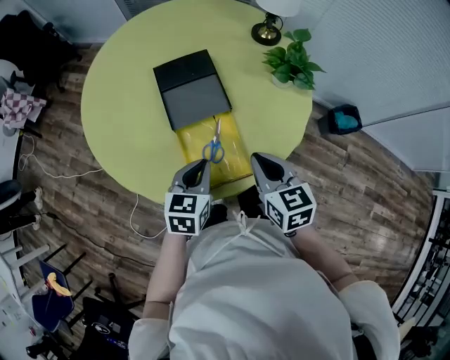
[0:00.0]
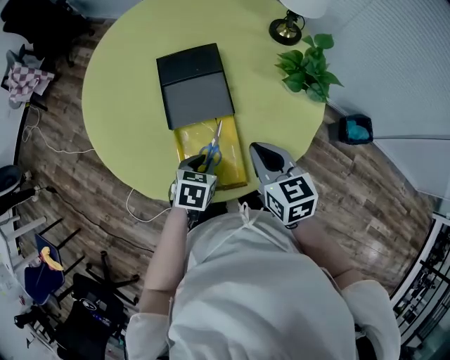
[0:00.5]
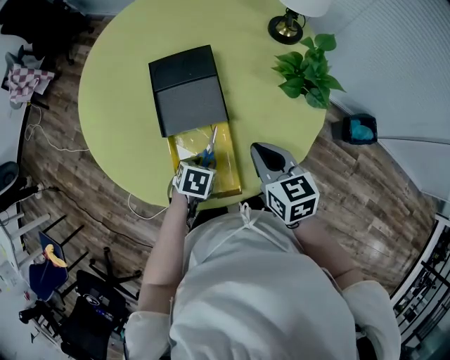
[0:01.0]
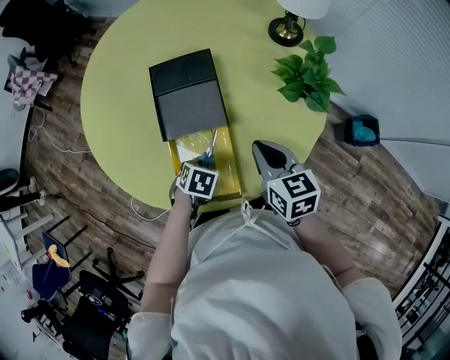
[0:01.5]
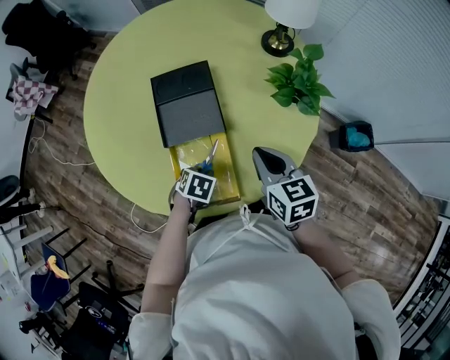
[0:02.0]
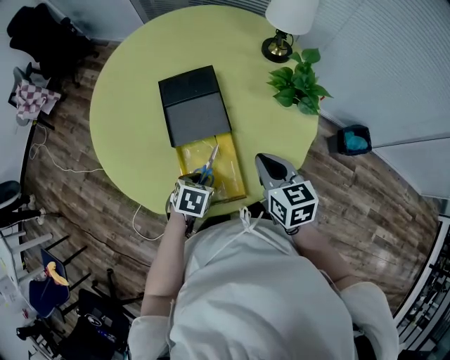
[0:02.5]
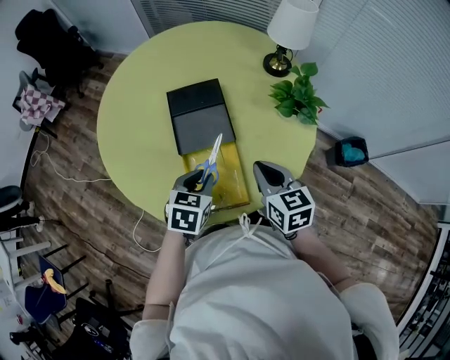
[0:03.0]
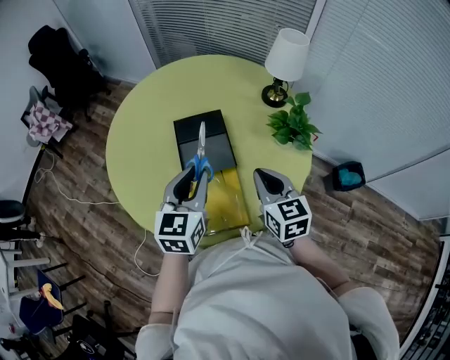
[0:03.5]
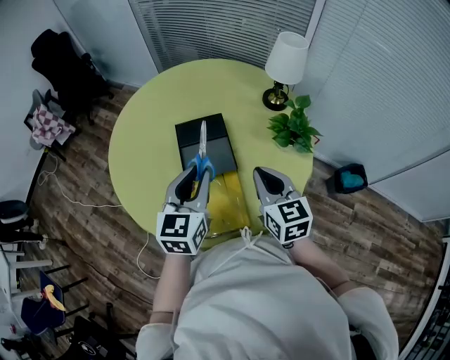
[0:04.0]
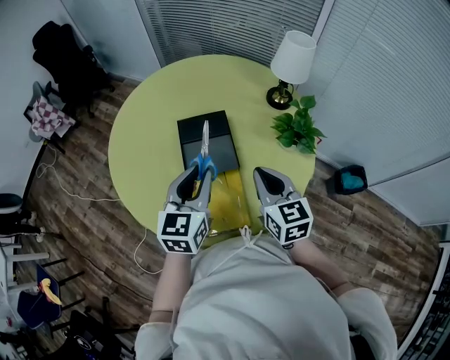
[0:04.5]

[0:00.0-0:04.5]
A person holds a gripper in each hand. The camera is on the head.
0:00.0 to 0:02.0: The right gripper changes place by approximately 10 cm. The left gripper moves downward, approximately 15 cm, and points its fingers some 40 degrees further downward.
0:02.0 to 0:04.5: The left gripper travels upward by some 30 cm, and points its fingers roughly 60 degrees further upward; the right gripper heads upward, covering about 10 cm.

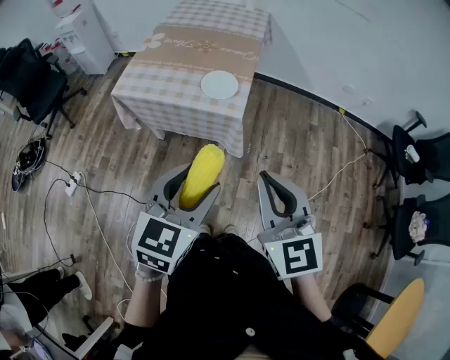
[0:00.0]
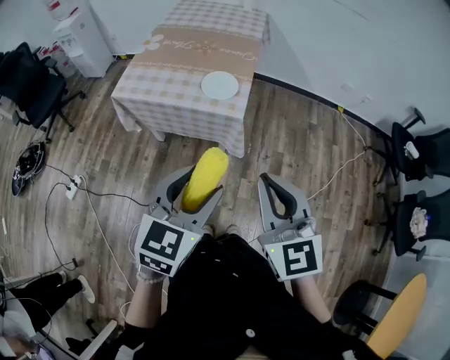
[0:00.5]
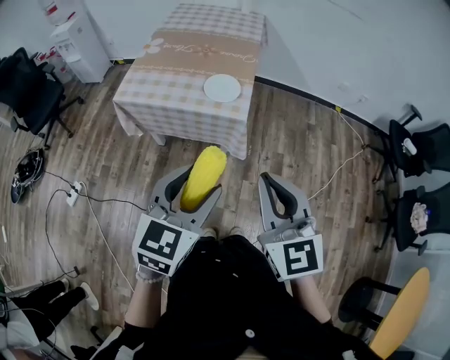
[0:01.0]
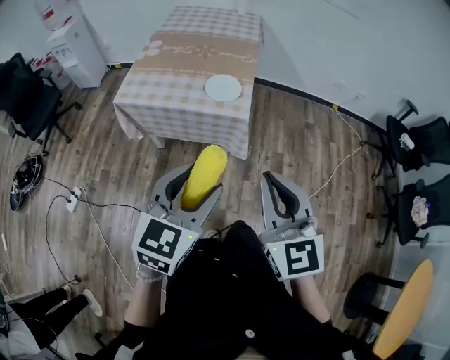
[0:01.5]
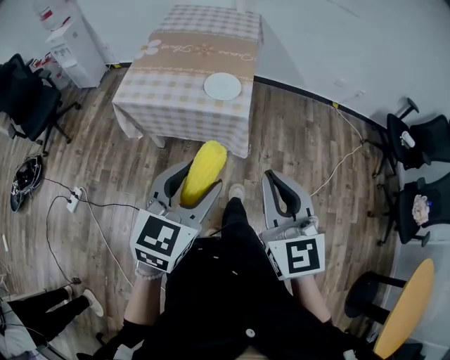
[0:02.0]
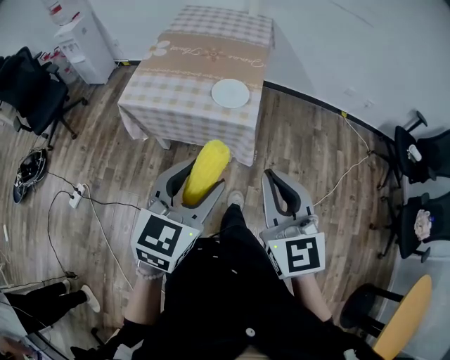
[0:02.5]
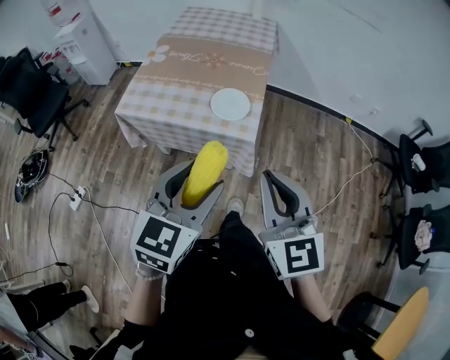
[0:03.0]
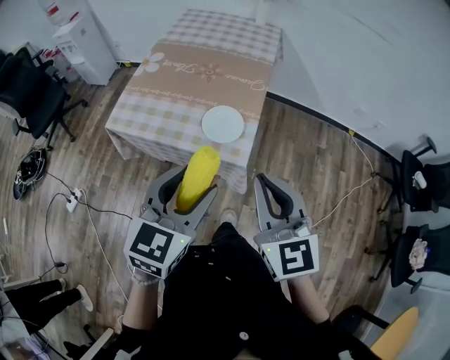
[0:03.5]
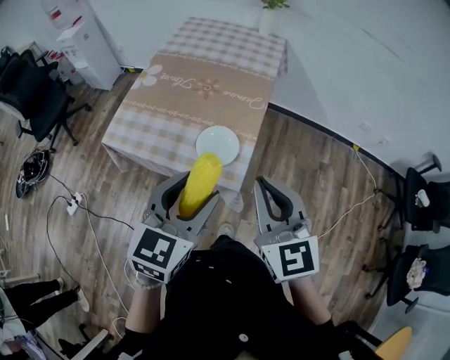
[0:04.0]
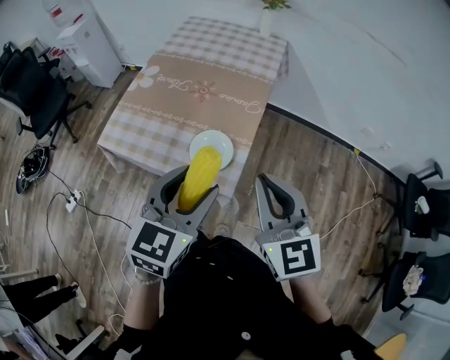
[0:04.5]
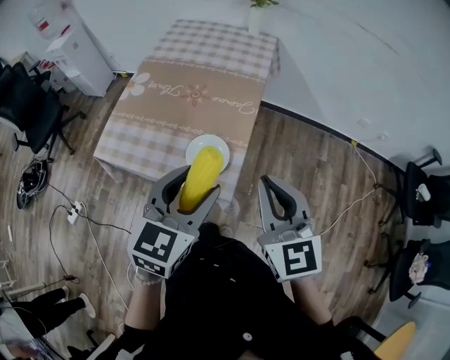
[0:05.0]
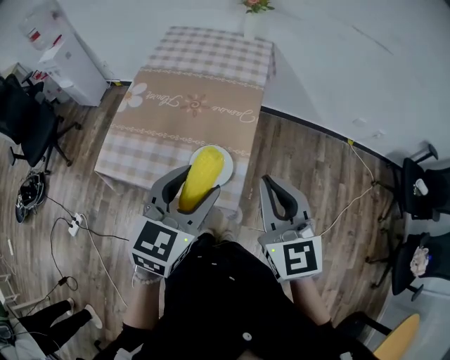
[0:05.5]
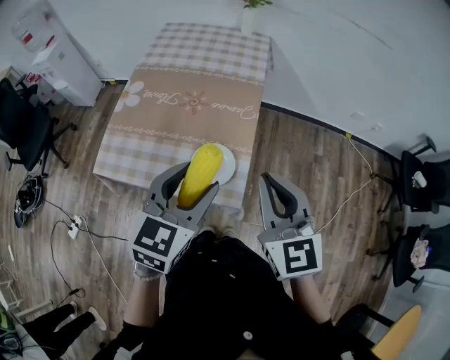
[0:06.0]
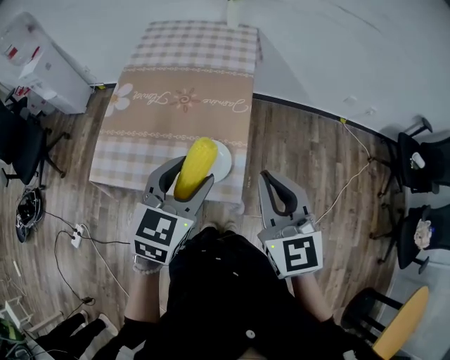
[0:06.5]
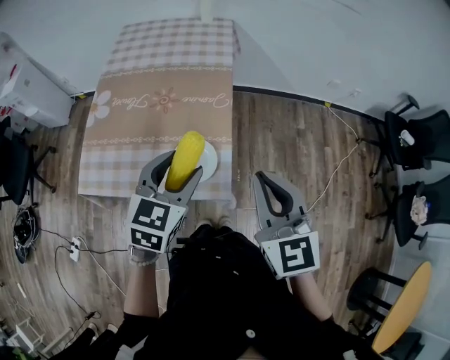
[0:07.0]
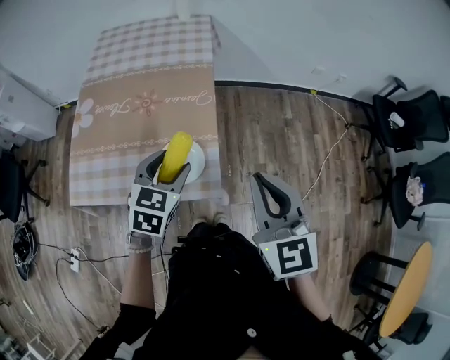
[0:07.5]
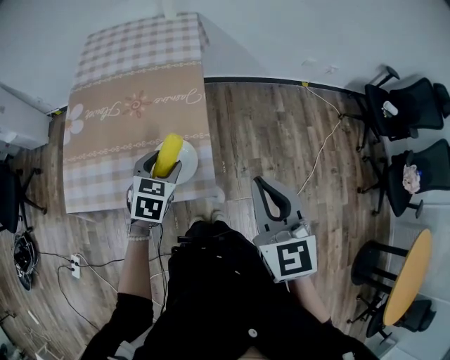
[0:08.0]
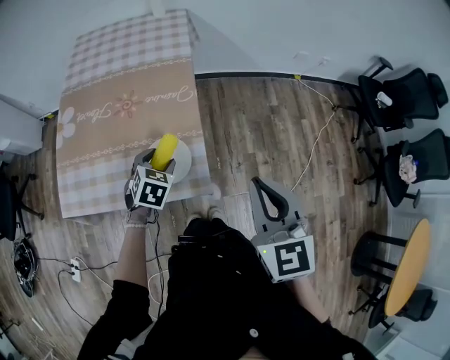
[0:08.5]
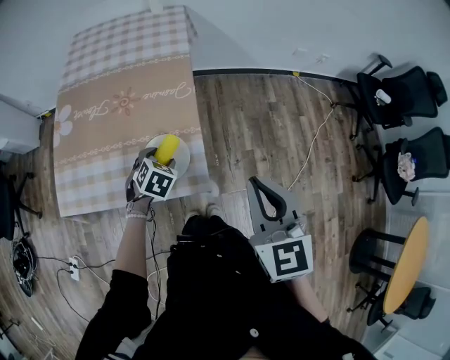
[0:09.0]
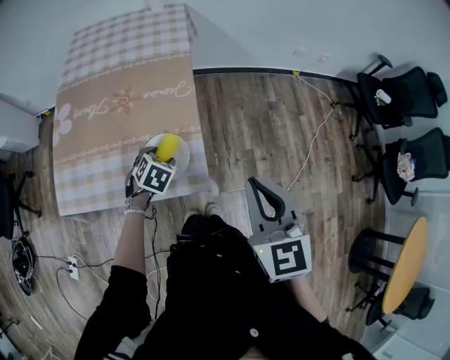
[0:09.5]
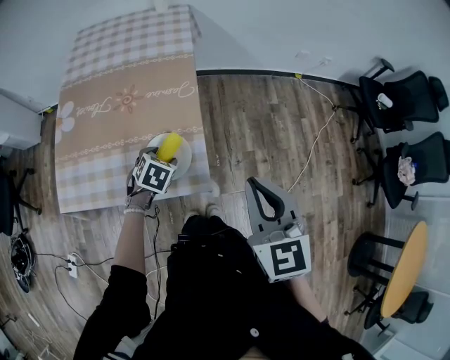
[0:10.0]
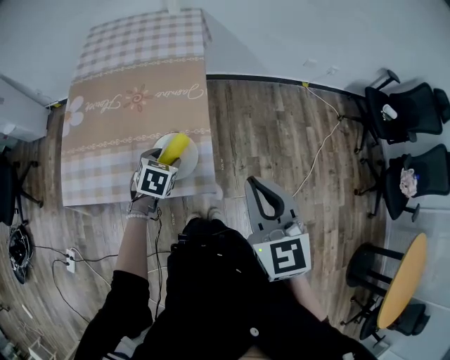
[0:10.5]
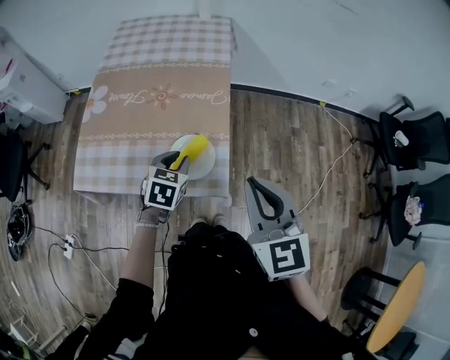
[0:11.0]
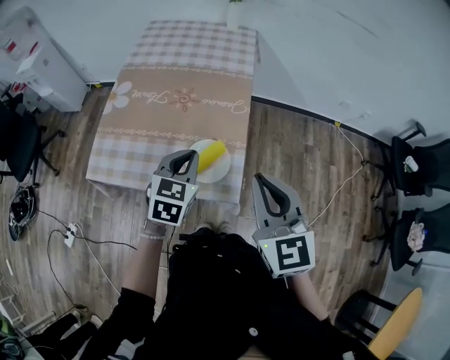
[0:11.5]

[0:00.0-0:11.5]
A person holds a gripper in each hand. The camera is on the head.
0:00.0 to 0:02.0: The left gripper heads to the left, covering some 5 cm.
0:02.0 to 0:04.0: The two grippers go some 30 cm forward.
0:04.0 to 0:06.0: The grippers both shift forward by about 10 cm.
0:06.0 to 0:07.5: The left gripper goes approximately 15 cm downward and forward. Meanwhile the right gripper goes approximately 5 cm to the right.
0:07.5 to 0:09.5: The left gripper heads downward, covering some 20 cm, and turns by about 30 degrees.
0:09.5 to 0:11.5: The left gripper moves upward, approximately 20 cm, points its fingers approximately 30 degrees further upward, and closes its fingers. Meanwhile the right gripper is displaced to the left by some 10 cm.

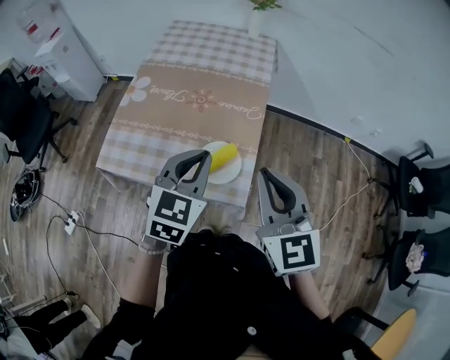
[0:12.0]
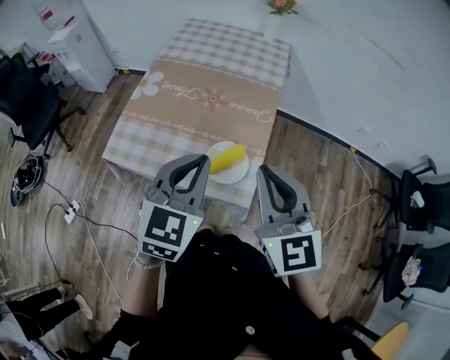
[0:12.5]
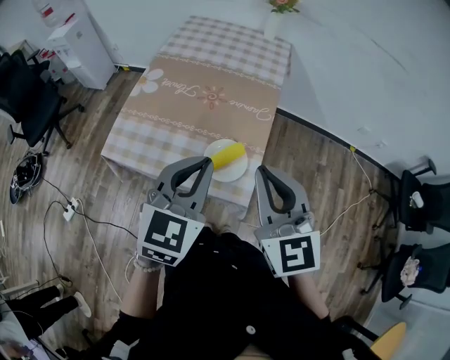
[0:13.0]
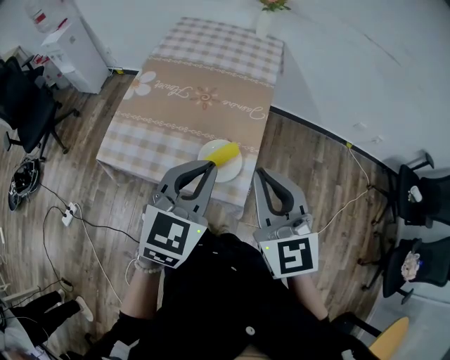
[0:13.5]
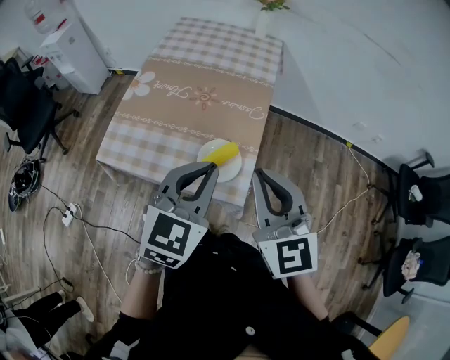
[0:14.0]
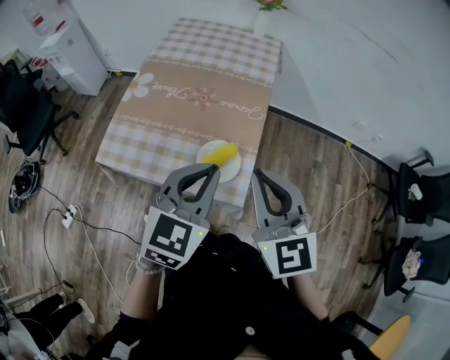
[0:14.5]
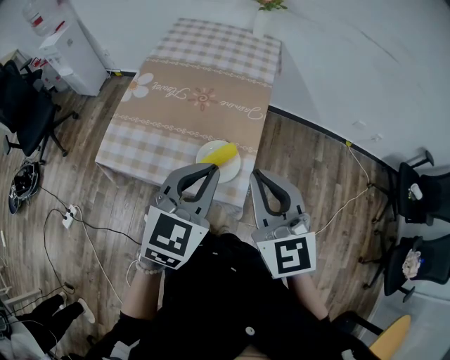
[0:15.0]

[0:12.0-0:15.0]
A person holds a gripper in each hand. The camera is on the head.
0:12.0 to 0:13.5: The left gripper moves approximately 5 cm.
0:13.5 to 0:15.0: Both grippers stay about where they are.

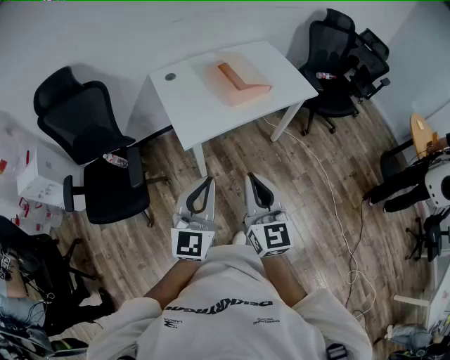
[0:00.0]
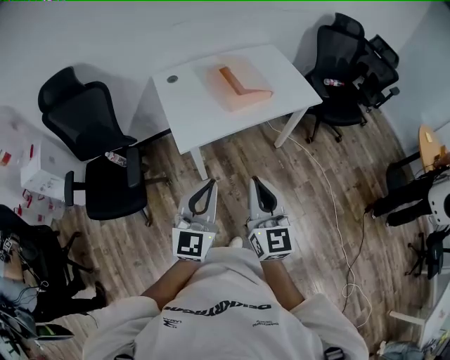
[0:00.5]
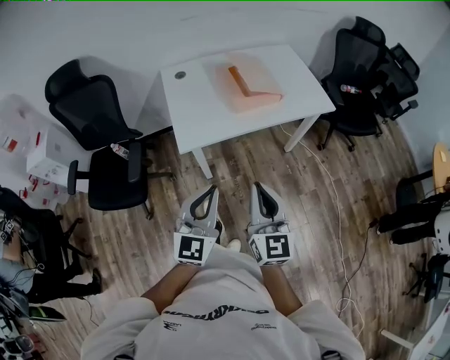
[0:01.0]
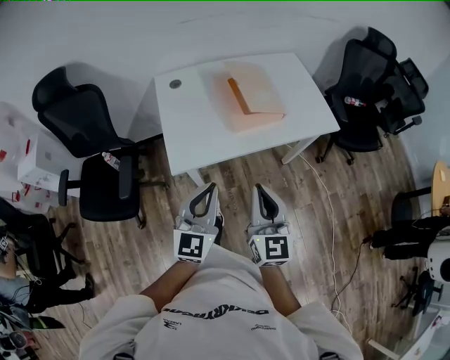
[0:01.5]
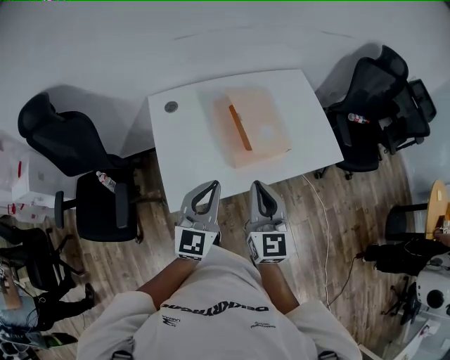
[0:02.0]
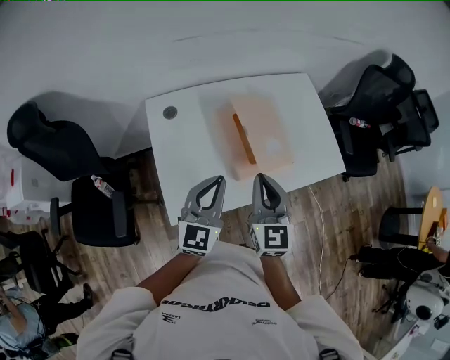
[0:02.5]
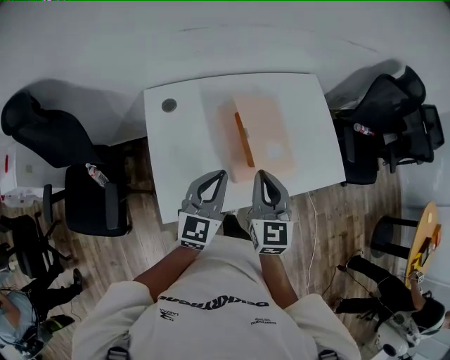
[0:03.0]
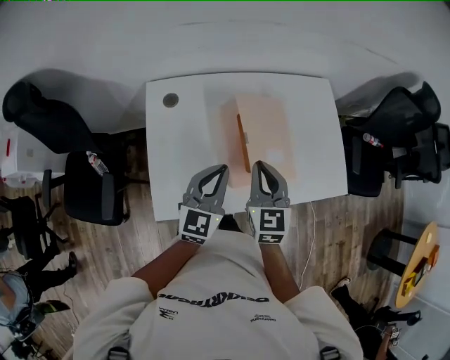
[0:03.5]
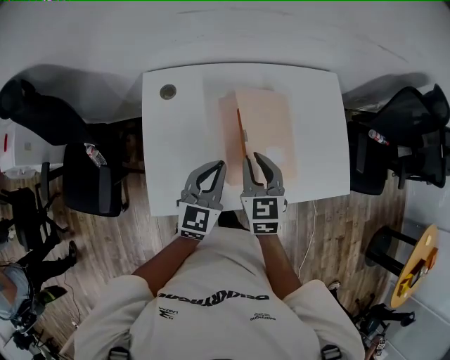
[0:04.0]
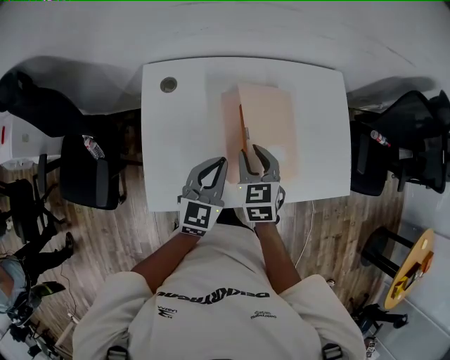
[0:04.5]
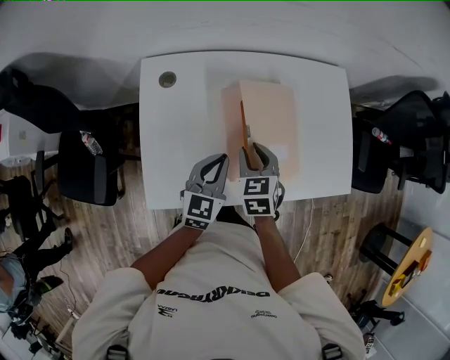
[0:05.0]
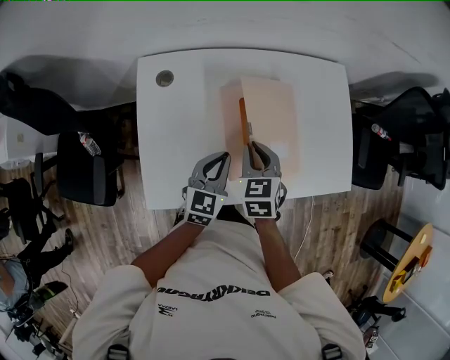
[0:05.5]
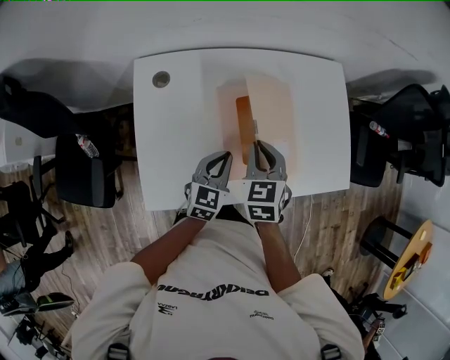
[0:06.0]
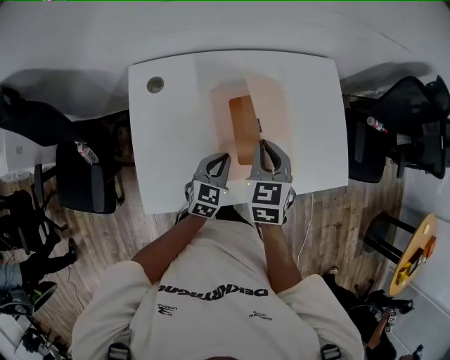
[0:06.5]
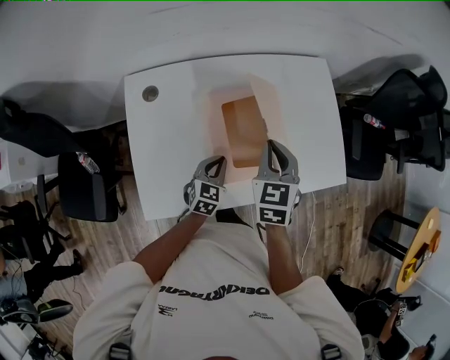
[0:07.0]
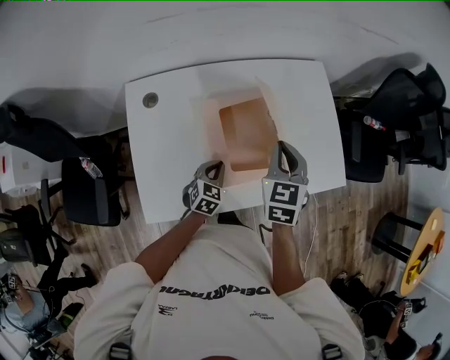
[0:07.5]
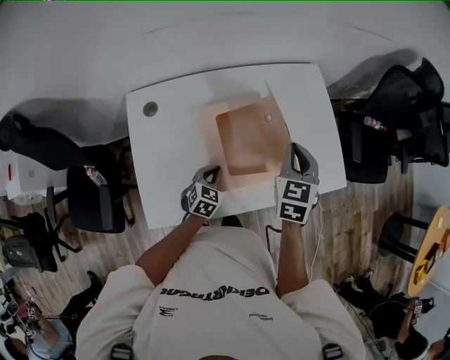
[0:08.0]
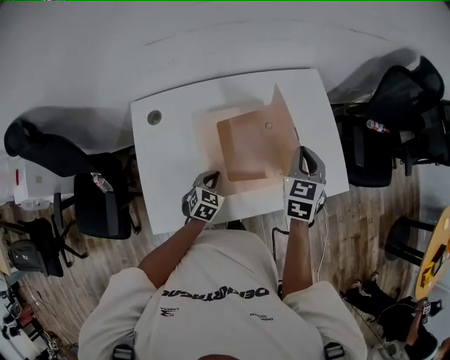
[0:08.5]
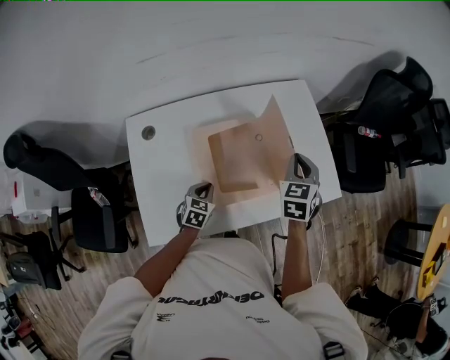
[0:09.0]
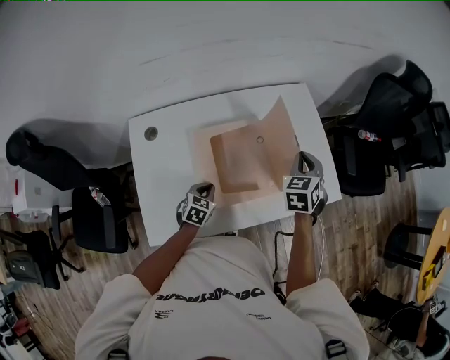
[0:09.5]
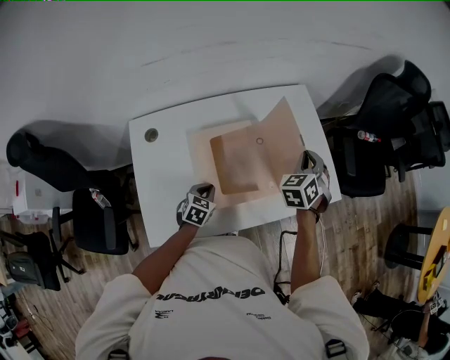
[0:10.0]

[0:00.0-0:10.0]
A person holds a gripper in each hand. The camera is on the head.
0:00.0 to 0:02.0: The grippers both shift forward by roughly 35 cm.
0:02.0 to 0:04.0: Both grippers move forward and downward, about 25 cm. The right gripper changes its angle by some 30 degrees.
0:04.0 to 0:06.0: The left gripper shifts about 10 cm downward.
0:06.0 to 0:08.0: The left gripper goes some 10 cm downward, and swivels roughly 20 degrees, while the right gripper heads to the right and upward, covering some 15 cm.
0:08.0 to 0:10.0: The right gripper shifts approximately 10 cm to the right and forward, and changes its angle by about 30 degrees.
